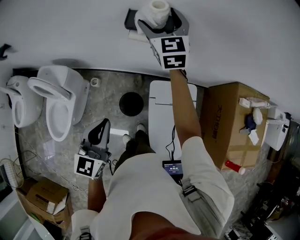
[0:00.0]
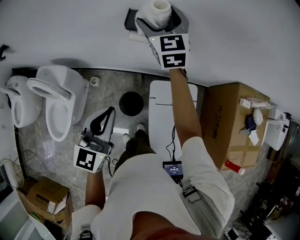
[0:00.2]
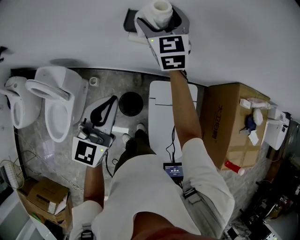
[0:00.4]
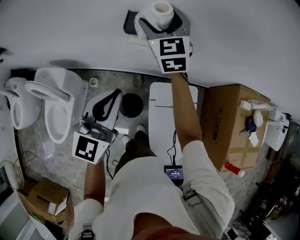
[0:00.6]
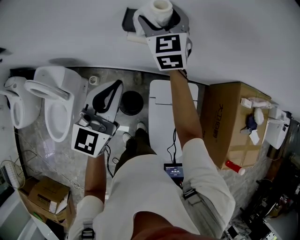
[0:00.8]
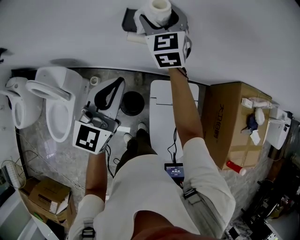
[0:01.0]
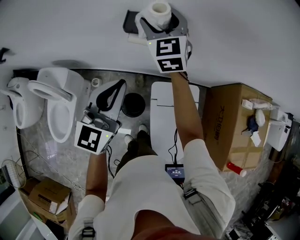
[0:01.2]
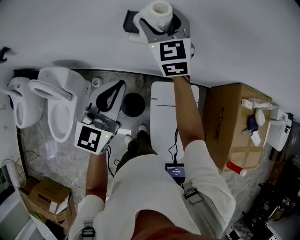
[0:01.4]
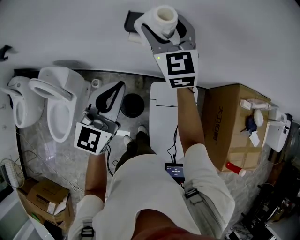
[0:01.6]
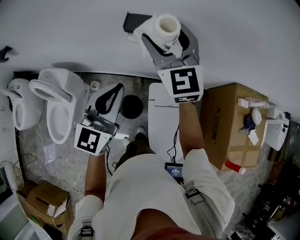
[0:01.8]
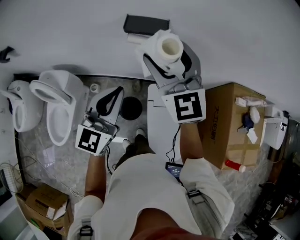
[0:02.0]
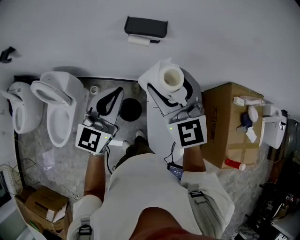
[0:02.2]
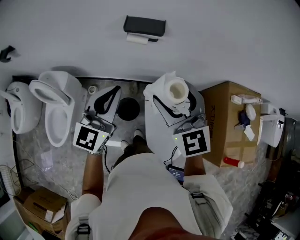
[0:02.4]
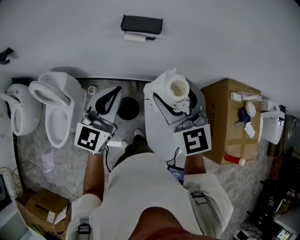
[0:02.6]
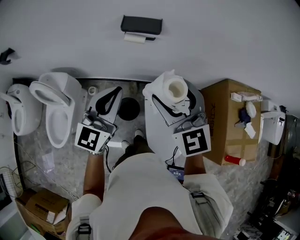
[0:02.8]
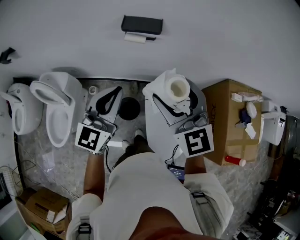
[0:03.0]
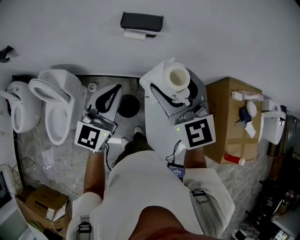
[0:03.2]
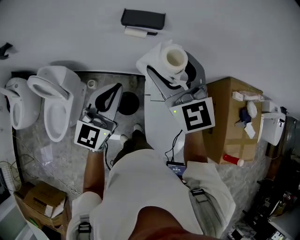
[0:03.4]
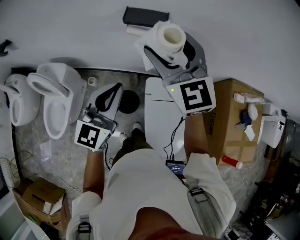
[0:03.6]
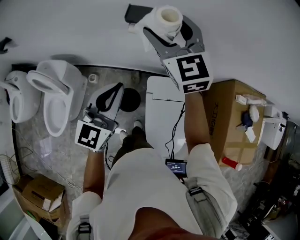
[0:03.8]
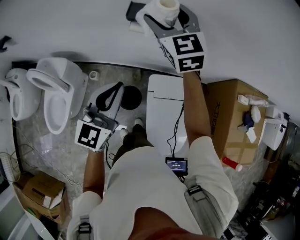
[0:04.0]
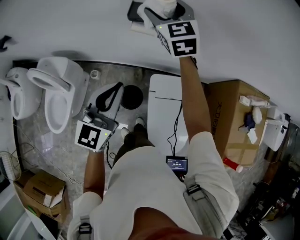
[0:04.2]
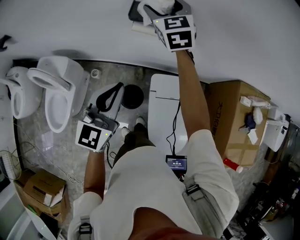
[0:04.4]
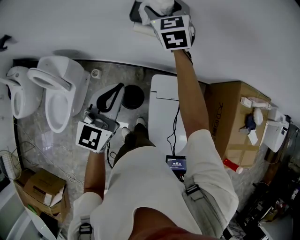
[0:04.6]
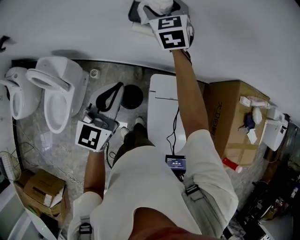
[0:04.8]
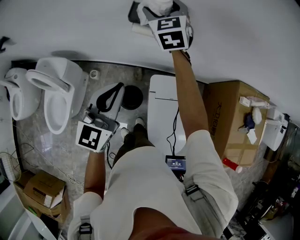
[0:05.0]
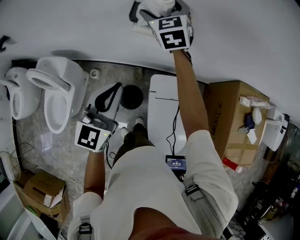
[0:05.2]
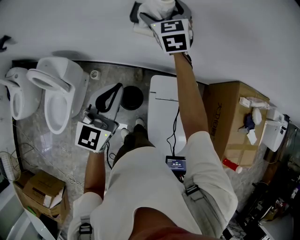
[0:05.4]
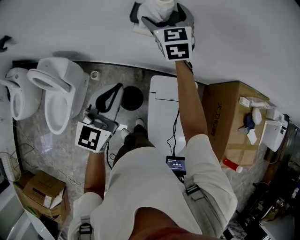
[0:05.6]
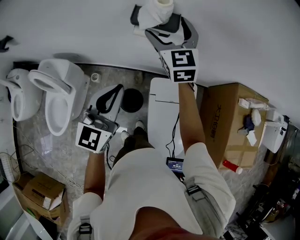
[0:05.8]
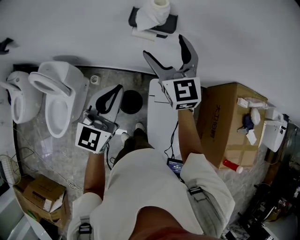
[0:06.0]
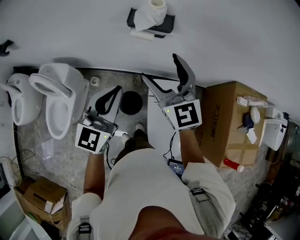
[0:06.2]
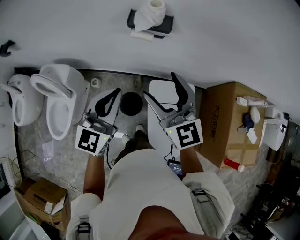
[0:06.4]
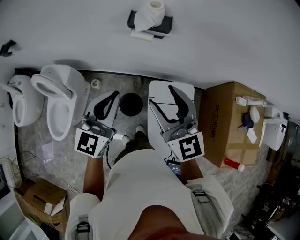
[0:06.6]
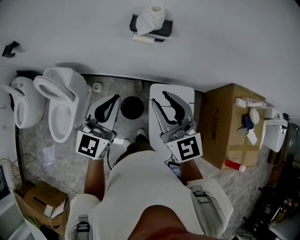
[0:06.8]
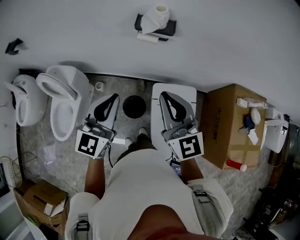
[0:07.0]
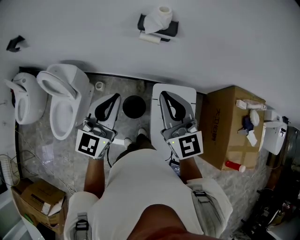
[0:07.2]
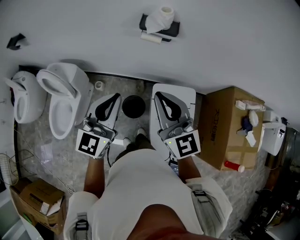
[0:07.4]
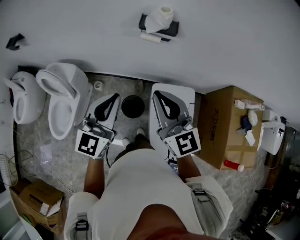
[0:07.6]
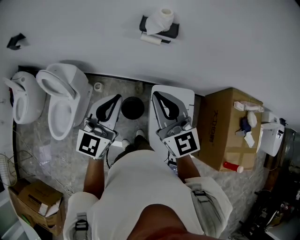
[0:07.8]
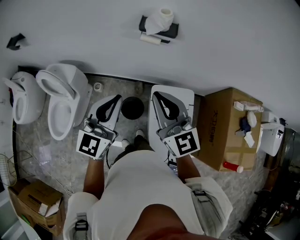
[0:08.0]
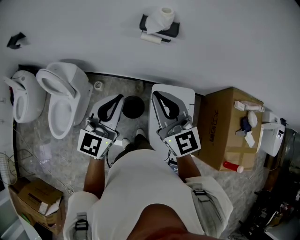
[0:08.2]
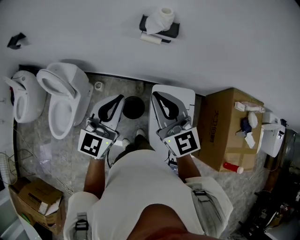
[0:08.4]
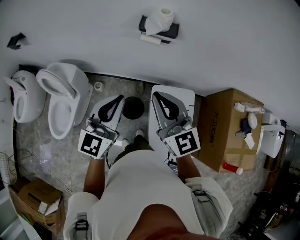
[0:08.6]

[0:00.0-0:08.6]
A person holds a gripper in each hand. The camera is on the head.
0:00.0 to 0:01.4: The left gripper moves forward and upward, approximately 15 cm.
0:01.4 to 0:02.8: The left gripper heads backward, covering approximately 10 cm, while the right gripper is displaced backward by approximately 30 cm.
0:02.8 to 0:04.4: The left gripper heads downward and forward, covering approximately 10 cm. The right gripper shifts roughly 35 cm forward.
0:04.4 to 0:05.8: The right gripper heads backward, covering about 5 cm.
0:05.8 to 0:07.2: The right gripper is displaced backward by approximately 30 cm, and closes, while the left gripper goes some 10 cm backward.
0:07.2 to 0:08.6: There are only small adjustments of the grippers.

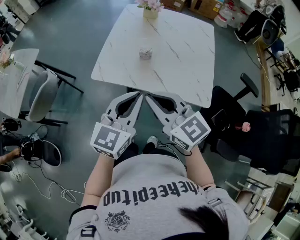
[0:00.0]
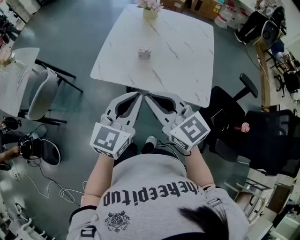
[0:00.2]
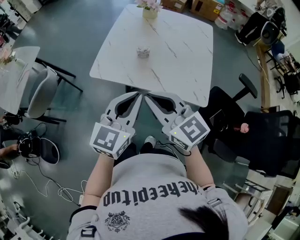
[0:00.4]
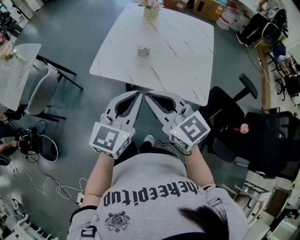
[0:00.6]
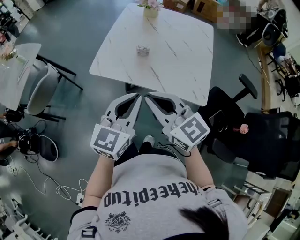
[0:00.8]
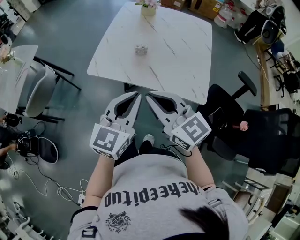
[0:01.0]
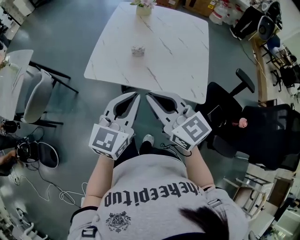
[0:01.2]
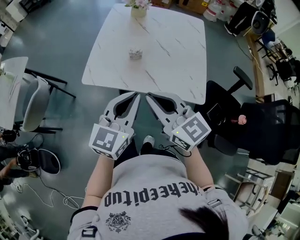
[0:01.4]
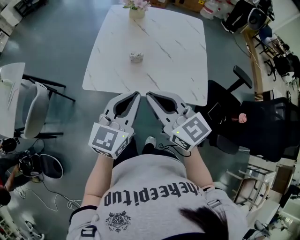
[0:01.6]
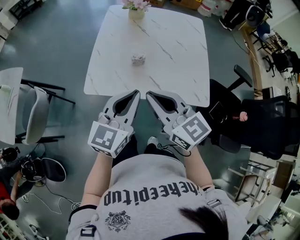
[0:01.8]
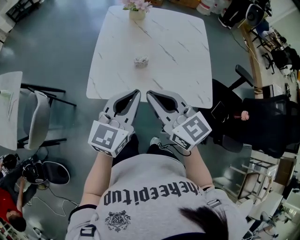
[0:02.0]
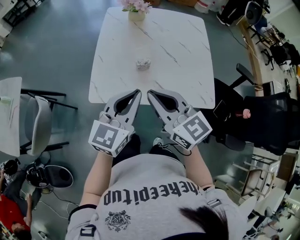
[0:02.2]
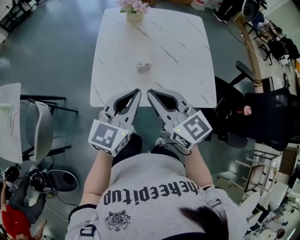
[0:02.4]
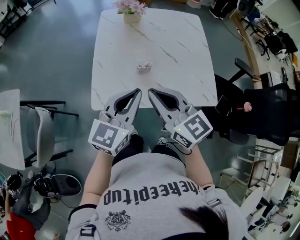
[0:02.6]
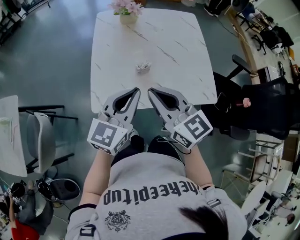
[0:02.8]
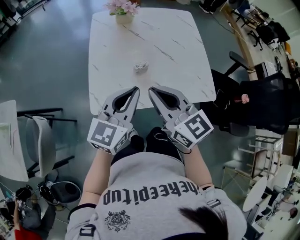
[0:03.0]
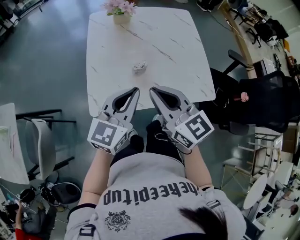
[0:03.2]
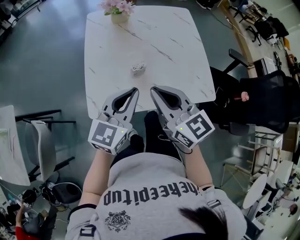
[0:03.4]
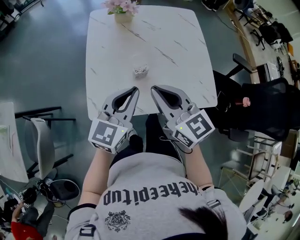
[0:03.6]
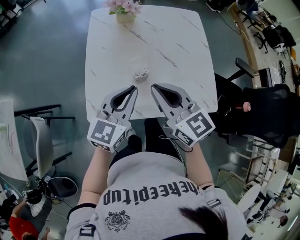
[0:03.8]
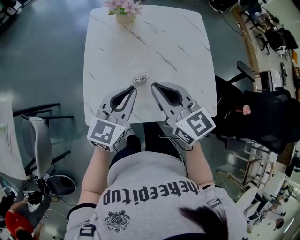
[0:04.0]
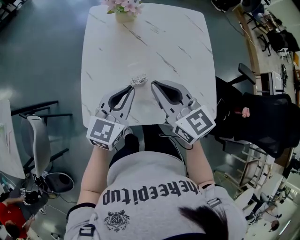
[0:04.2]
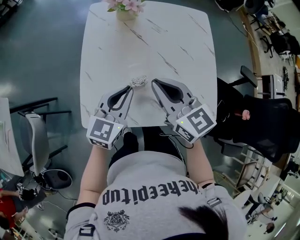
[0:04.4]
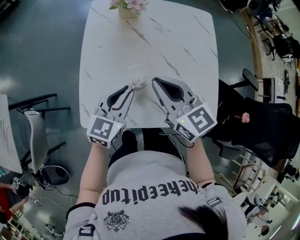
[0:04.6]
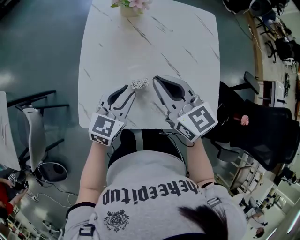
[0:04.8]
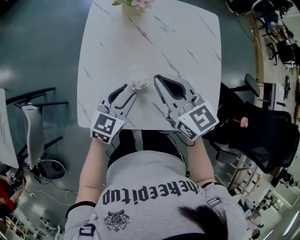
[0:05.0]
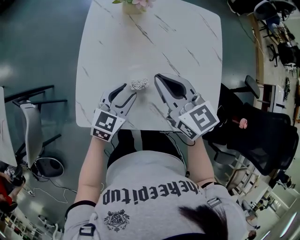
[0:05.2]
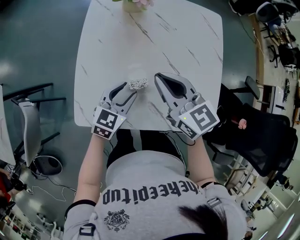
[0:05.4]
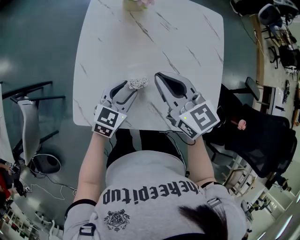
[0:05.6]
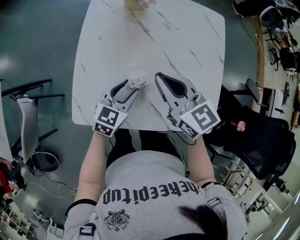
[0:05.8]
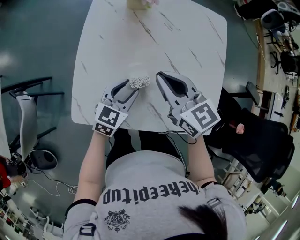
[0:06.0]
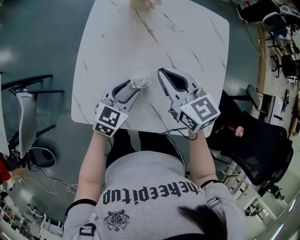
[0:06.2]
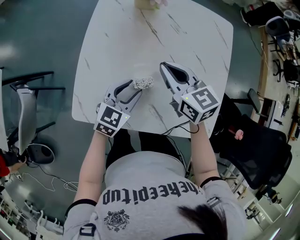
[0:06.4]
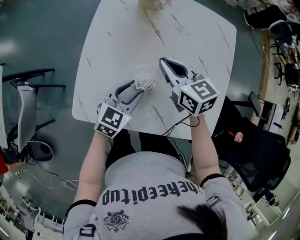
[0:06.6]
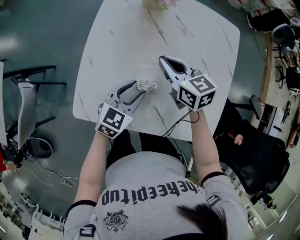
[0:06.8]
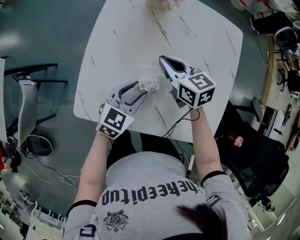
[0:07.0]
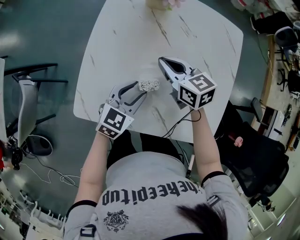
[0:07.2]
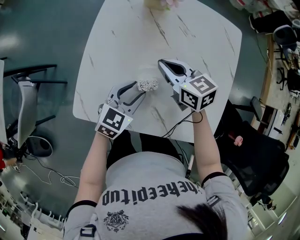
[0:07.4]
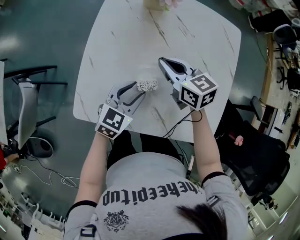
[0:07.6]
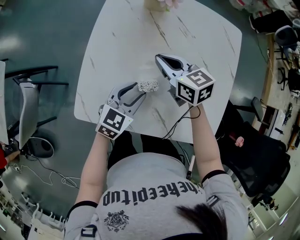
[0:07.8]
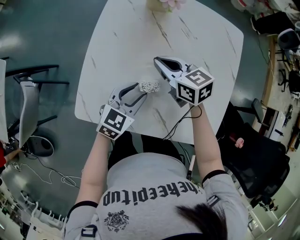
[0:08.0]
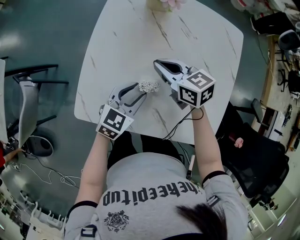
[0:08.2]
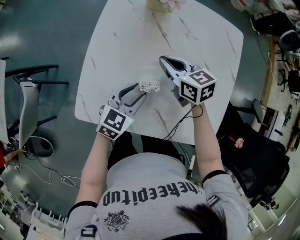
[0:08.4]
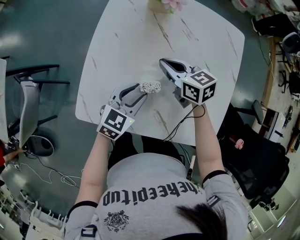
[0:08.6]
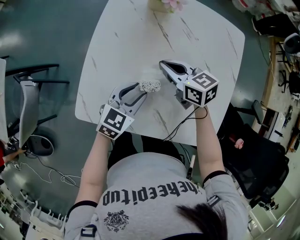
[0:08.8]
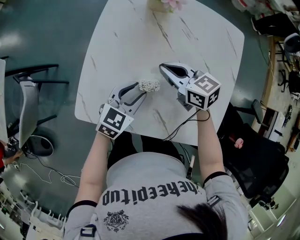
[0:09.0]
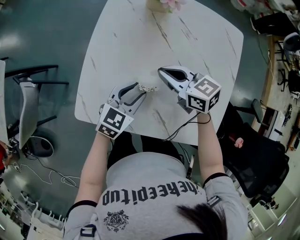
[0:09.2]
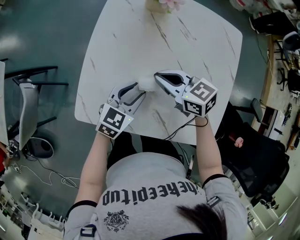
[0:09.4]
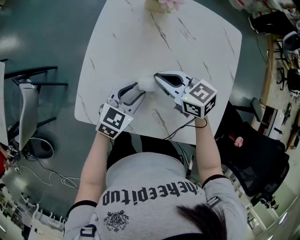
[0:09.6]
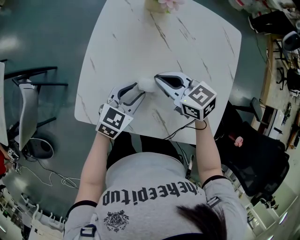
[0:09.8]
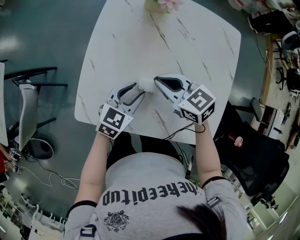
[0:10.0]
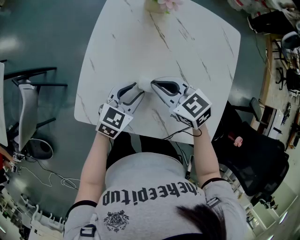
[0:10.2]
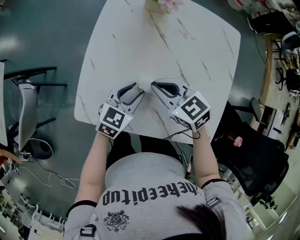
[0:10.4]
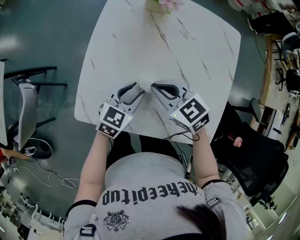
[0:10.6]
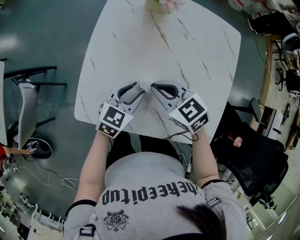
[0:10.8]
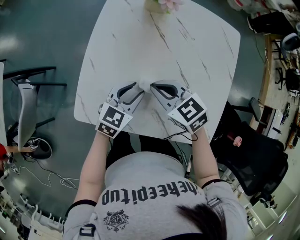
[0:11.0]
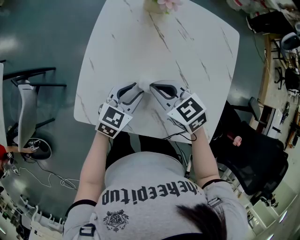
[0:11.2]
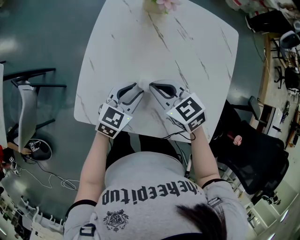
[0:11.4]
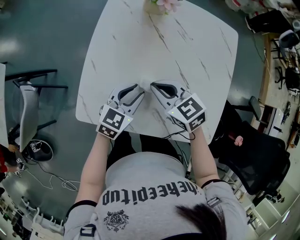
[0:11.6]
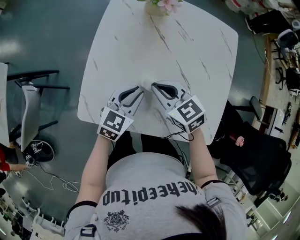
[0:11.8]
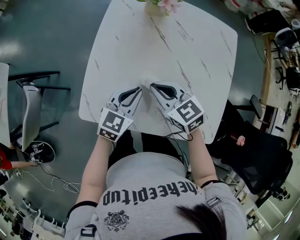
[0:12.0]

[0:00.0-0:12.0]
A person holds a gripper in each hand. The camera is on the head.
0:00.0 to 0:01.6: The grippers stay close to where they were, moving slightly.
0:01.6 to 0:03.0: The two grippers go some 10 cm forward and to the left.
0:03.0 to 0:04.4: The right gripper heads forward, covering roughly 15 cm; the left gripper is displaced forward and downward by about 15 cm.
0:04.4 to 0:06.0: The left gripper moves downward, approximately 10 cm, and opens up, while the right gripper travels forward by roughly 5 cm.
0:06.0 to 0:07.6: The right gripper travels downward and forward by about 10 cm.
0:07.6 to 0:09.0: The grippers make only small movements.
0:09.0 to 0:10.4: The right gripper travels backward by roughly 5 cm.
0:10.4 to 0:12.0: The left gripper closes its fingers.

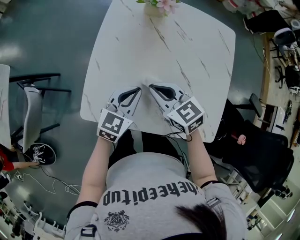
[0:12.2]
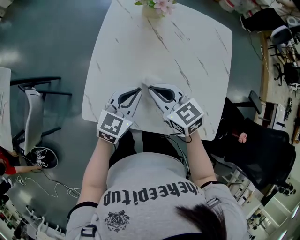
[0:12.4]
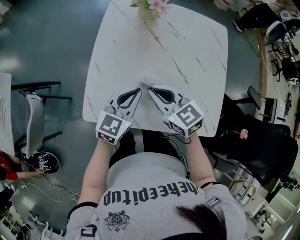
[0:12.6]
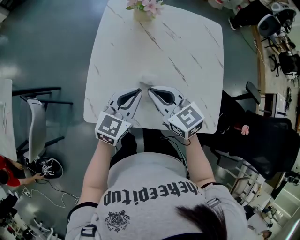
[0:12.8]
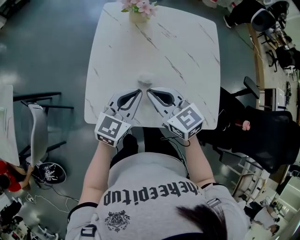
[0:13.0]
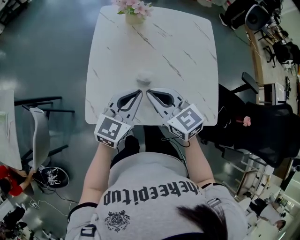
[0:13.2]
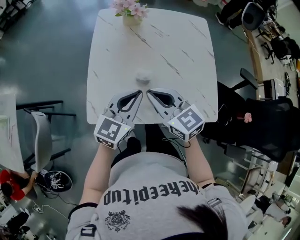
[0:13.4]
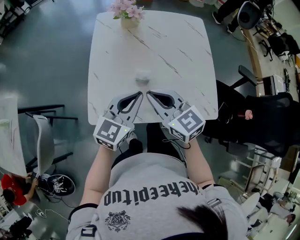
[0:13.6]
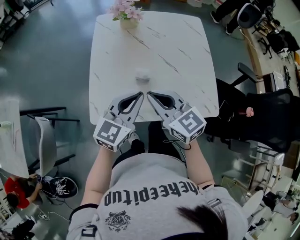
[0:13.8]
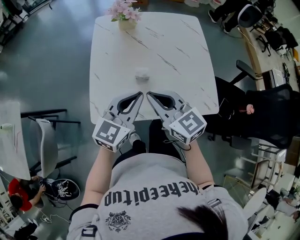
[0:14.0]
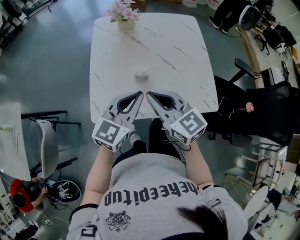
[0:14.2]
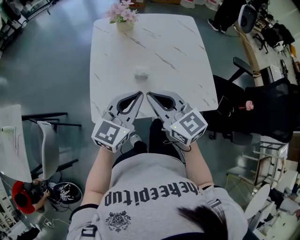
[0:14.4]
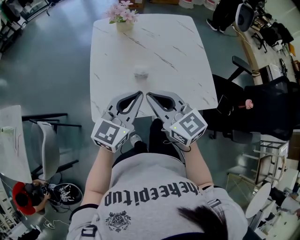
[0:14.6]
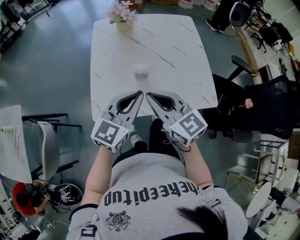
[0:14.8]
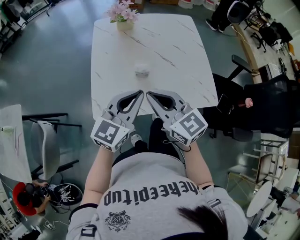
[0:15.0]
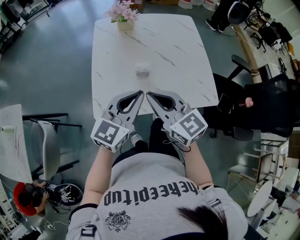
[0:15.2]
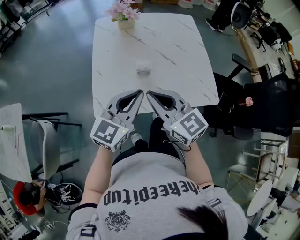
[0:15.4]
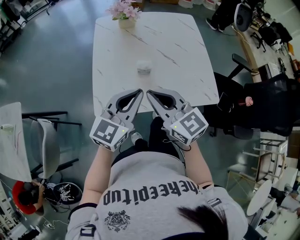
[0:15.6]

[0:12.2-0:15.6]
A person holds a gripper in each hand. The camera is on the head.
0:12.2 to 0:13.8: The left gripper is displaced upward and backward by about 15 cm; the right gripper shifts approximately 15 cm backward and upward, and changes its angle by roughly 20 degrees.
0:13.8 to 0:15.6: The two grippers go roughly 5 cm backward.
